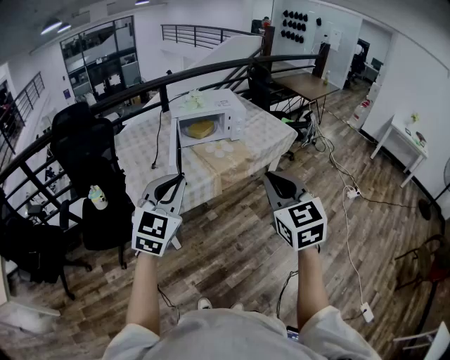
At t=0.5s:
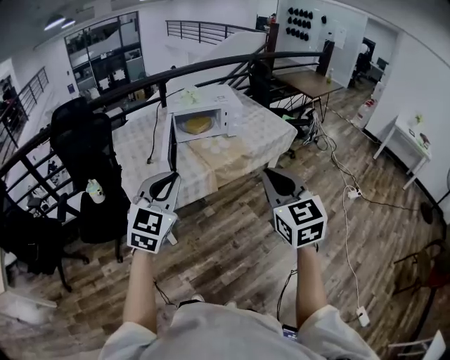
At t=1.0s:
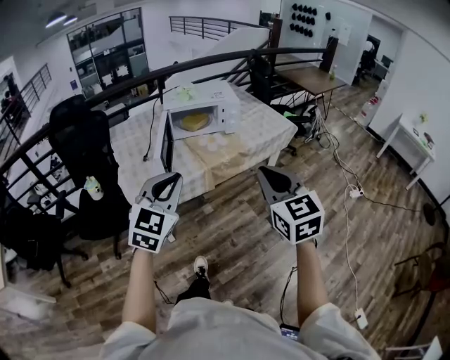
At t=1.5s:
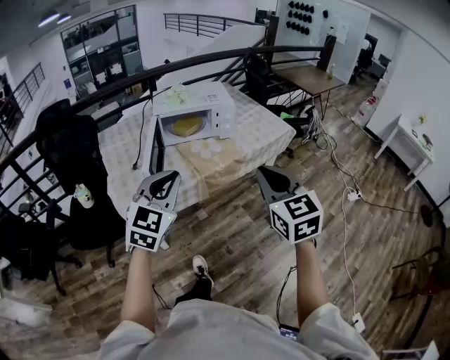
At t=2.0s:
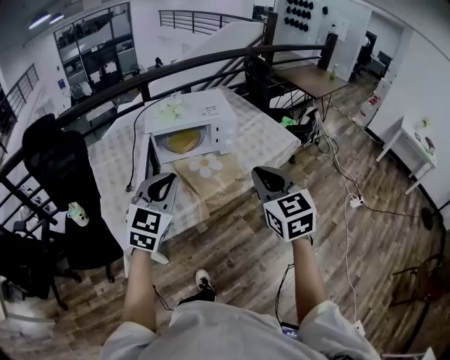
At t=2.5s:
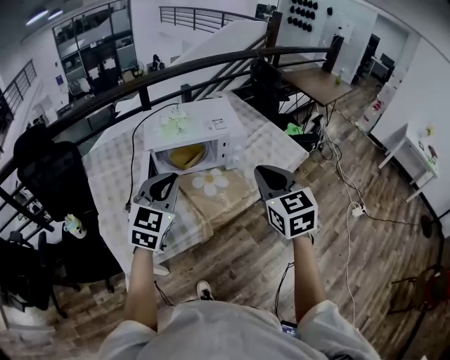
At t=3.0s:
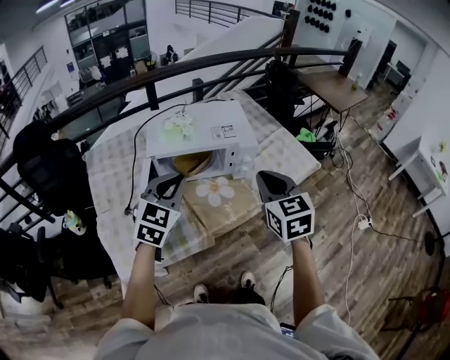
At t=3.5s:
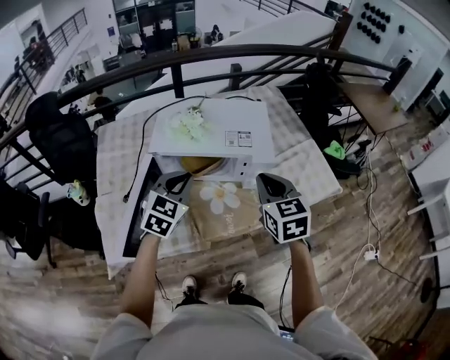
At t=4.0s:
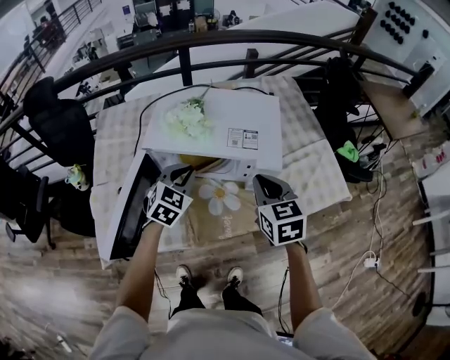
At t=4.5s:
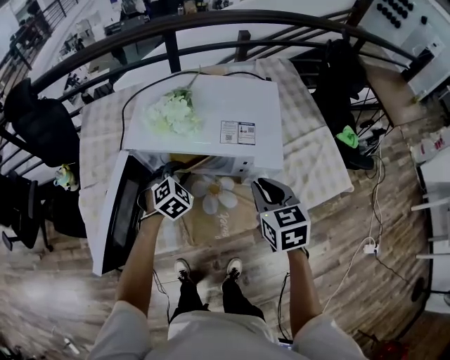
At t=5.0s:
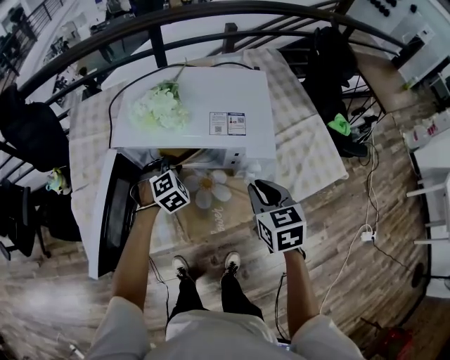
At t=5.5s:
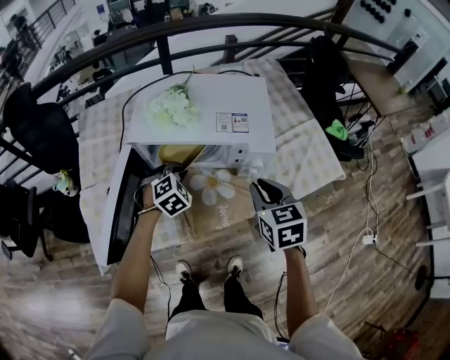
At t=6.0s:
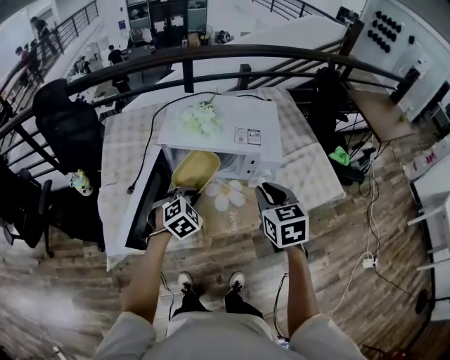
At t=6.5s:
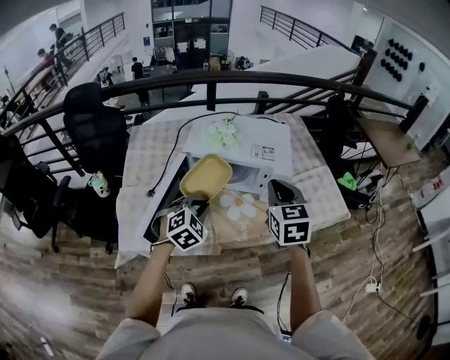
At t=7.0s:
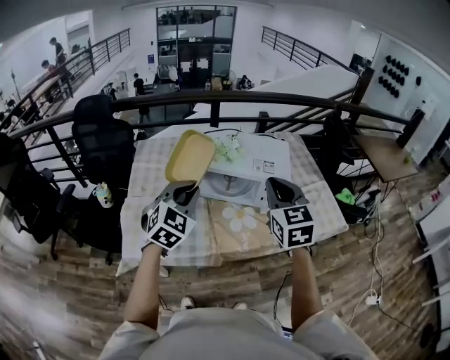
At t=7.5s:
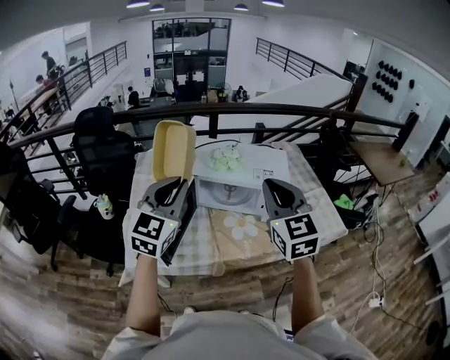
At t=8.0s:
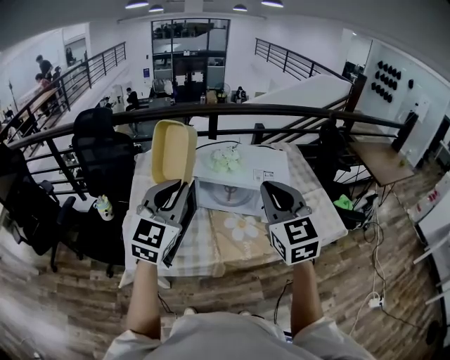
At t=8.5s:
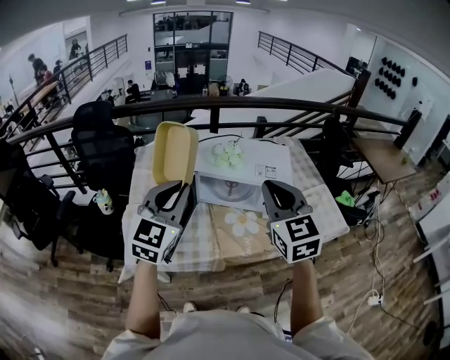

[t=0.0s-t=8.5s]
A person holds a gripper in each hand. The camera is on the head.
t=0.0s to t=2.0s: The two grippers go about 30 cm forward.
t=2.0s to t=4.0s: The left gripper goes some 40 cm forward and downward, and rotates some 30 degrees, while the right gripper shifts roughly 40 cm forward, and rotates roughly 20 degrees.
t=4.0s to t=6.5s: The left gripper goes roughly 15 cm backward, and opens, then closes again. The right gripper is displaced upward and backward by about 15 cm.
t=6.5s to t=8.5s: The right gripper is displaced upward, to the left and backward by some 15 cm, while the left gripper goes about 25 cm upward and to the left, and angles its fingers upward, by about 40 degrees.

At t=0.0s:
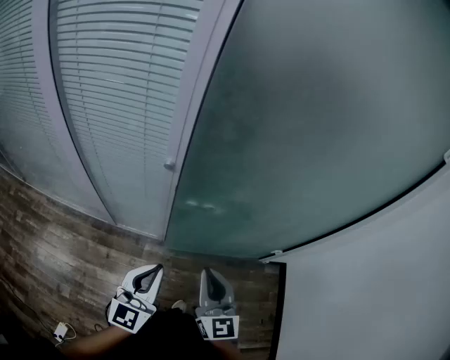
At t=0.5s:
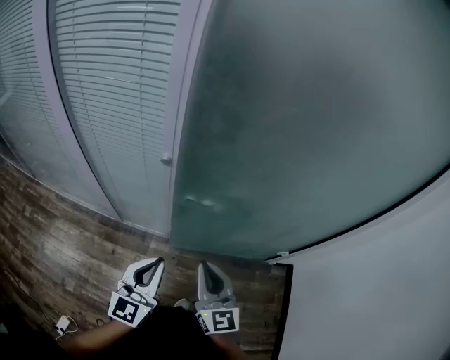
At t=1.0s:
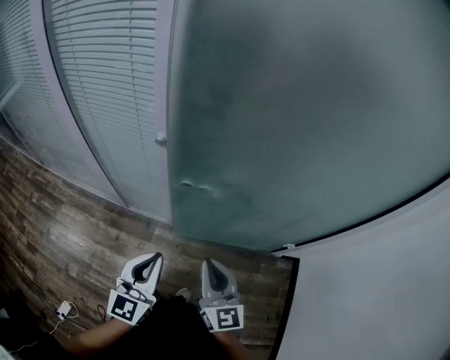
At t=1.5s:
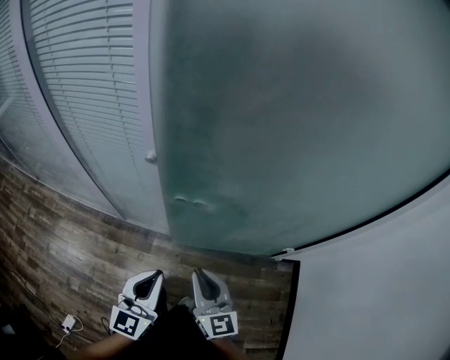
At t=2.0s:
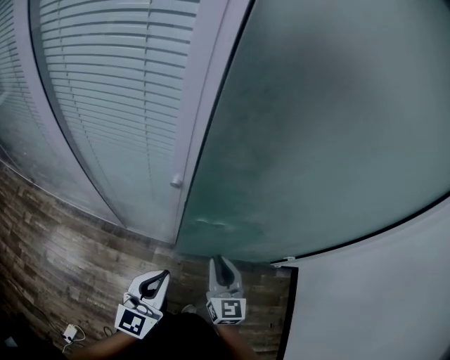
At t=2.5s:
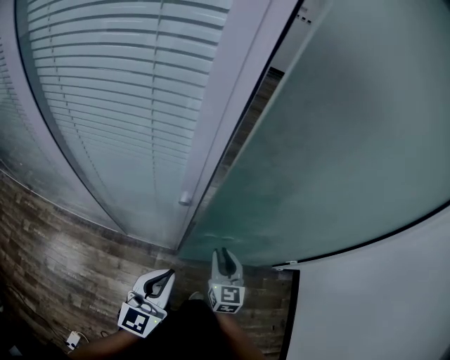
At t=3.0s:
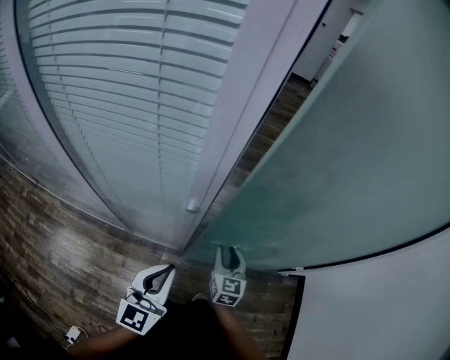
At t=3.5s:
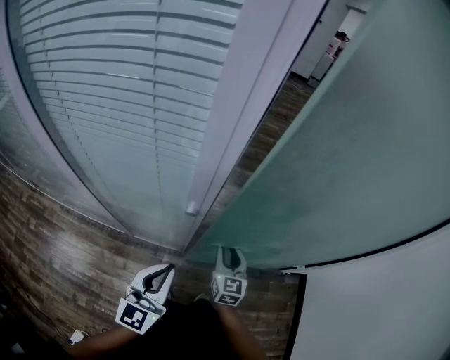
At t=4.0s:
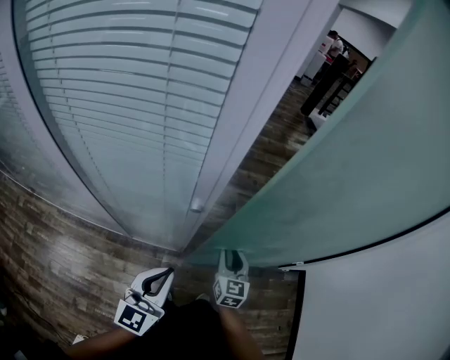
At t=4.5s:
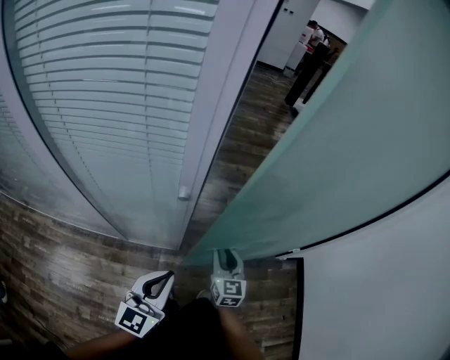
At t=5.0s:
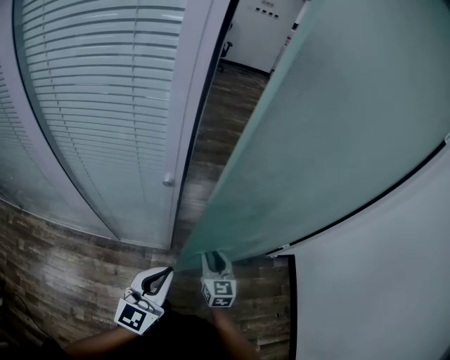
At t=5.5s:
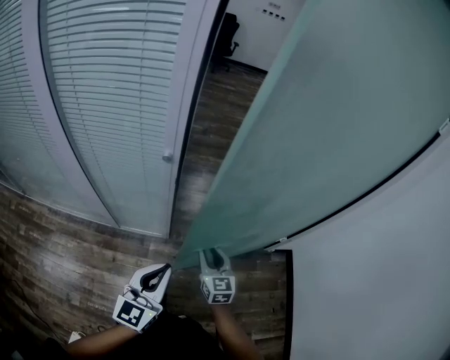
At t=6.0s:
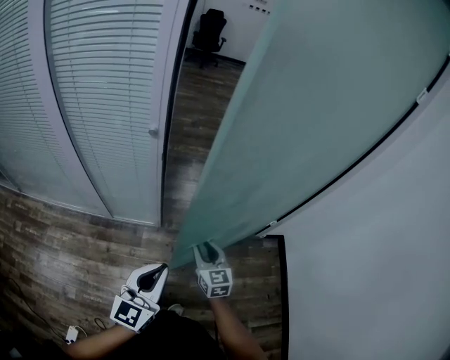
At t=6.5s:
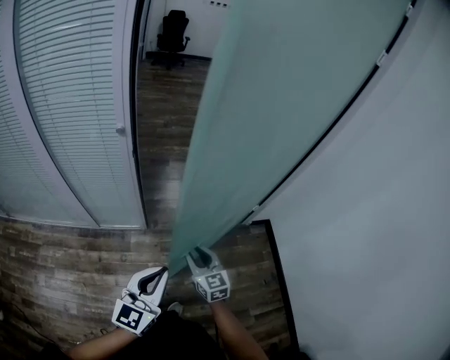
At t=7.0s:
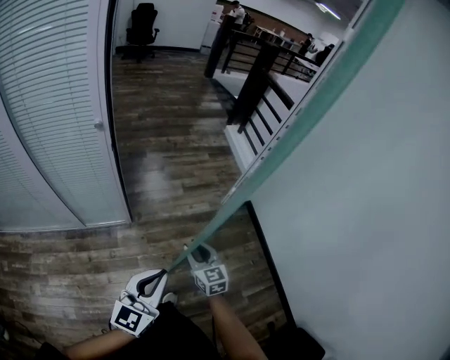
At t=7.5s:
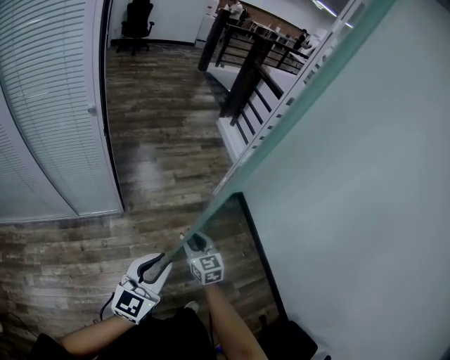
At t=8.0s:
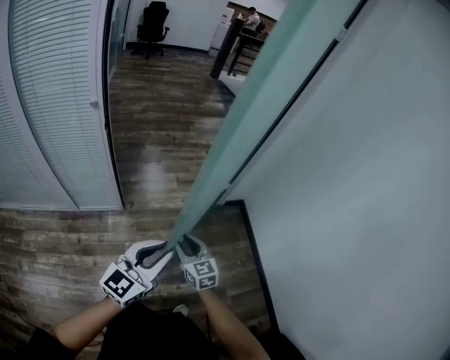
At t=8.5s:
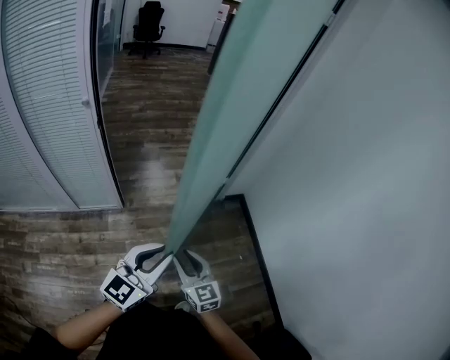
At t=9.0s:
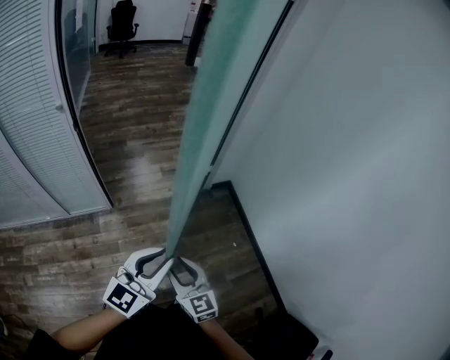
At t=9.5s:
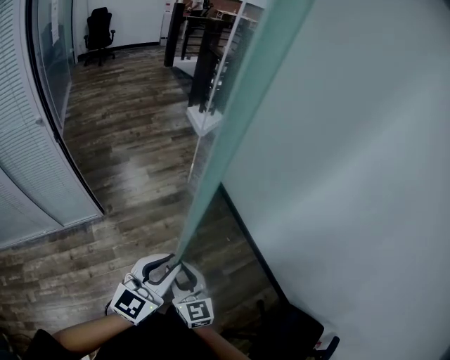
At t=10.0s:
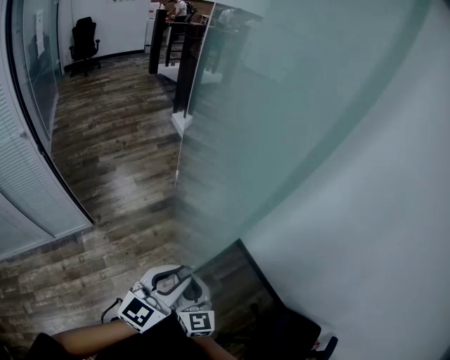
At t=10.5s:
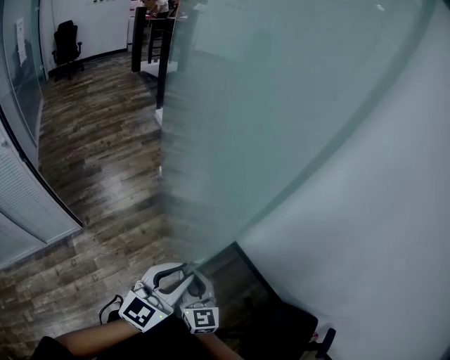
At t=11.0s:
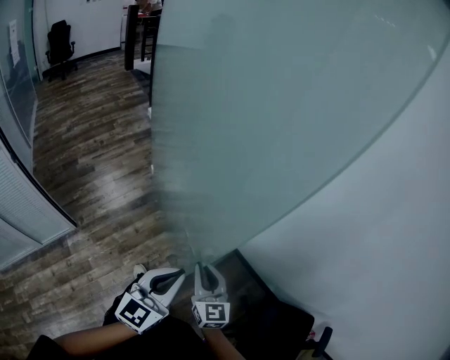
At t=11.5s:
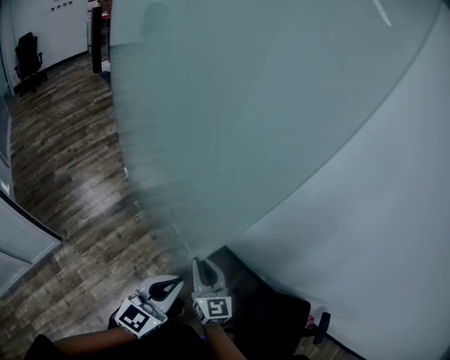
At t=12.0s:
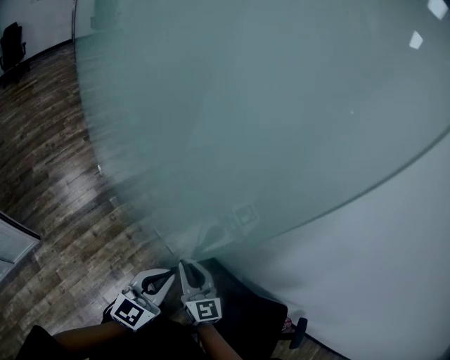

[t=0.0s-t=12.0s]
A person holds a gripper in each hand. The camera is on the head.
t=0.0s to t=2.0s: The right gripper heads downward and forward, covering about 15 cm, while the left gripper moves downward, some 5 cm.
t=2.0s to t=4.0s: The right gripper goes some 10 cm forward and downward. Meanwhile the left gripper shifts by approximately 5 cm.
t=4.0s to t=6.0s: The left gripper goes some 20 cm backward and to the right; the right gripper heads backward, covering approximately 20 cm.
t=6.0s to t=8.0s: The right gripper goes roughly 20 cm to the right and backward; the left gripper travels to the right by about 20 cm, and turns by some 30 degrees.
t=8.0s to t=10.0s: The right gripper goes some 25 cm to the right and backward, and turns by roughly 30 degrees; the left gripper goes some 25 cm to the right.
t=10.0s to t=12.0s: Both grippers travel together to the right and forward, some 25 cm. The left gripper closes.

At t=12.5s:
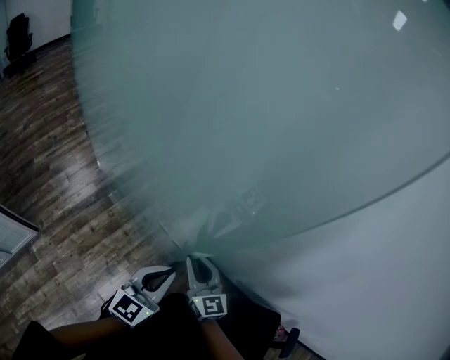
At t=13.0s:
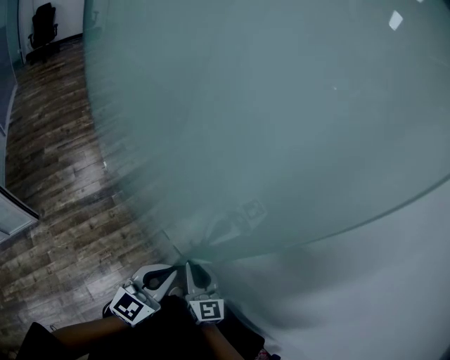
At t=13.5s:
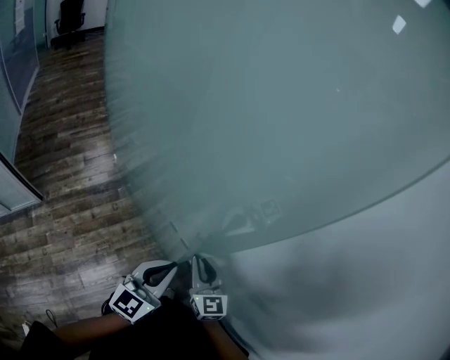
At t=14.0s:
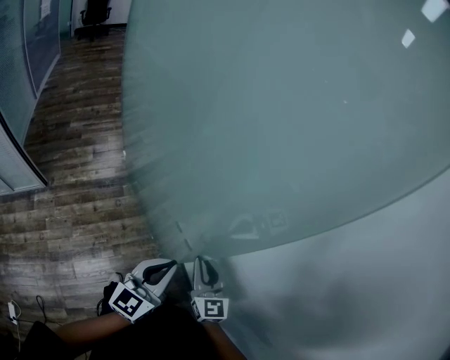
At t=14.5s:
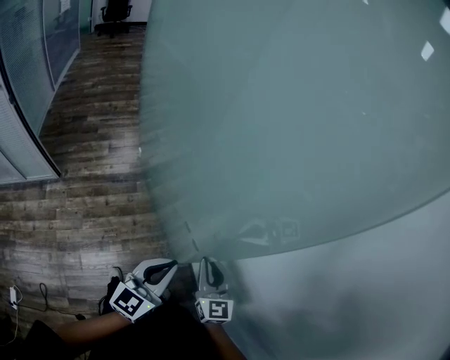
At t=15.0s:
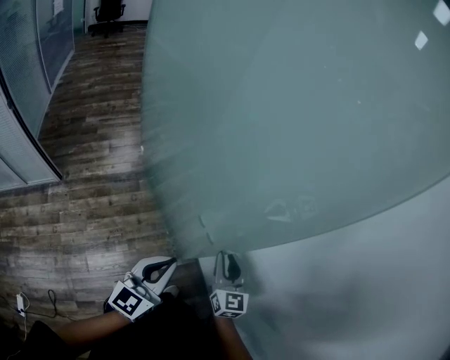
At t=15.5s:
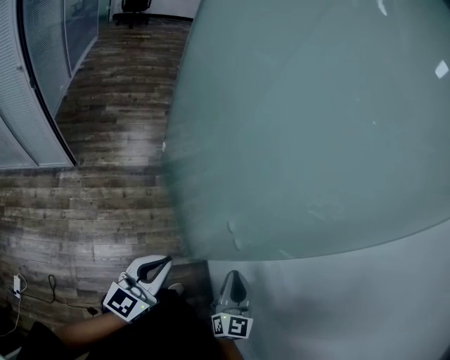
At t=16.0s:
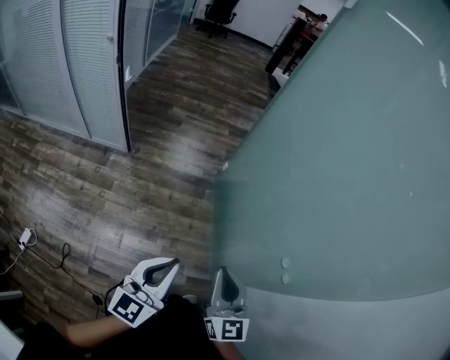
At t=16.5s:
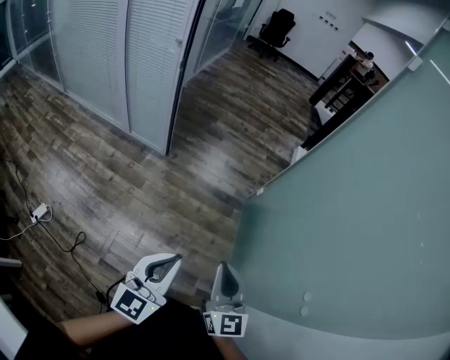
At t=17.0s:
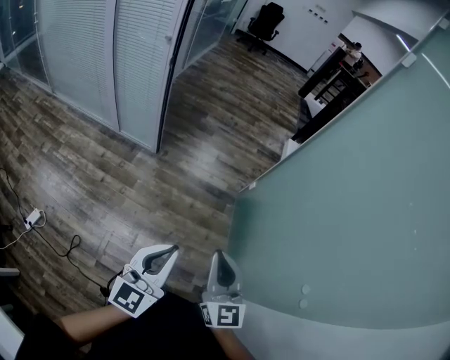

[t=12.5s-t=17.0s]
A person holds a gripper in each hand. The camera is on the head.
t=12.5s to t=14.5s: The left gripper shifts roughly 5 cm forward, and changes its angle by approximately 30 degrees. Meanwhile the right gripper is displaced forward and to the right by about 10 cm.
t=14.5s to t=17.0s: The pair of grippers is taken some 40 cm. The right gripper turns by about 40 degrees; the left gripper swivels approximately 40 degrees.

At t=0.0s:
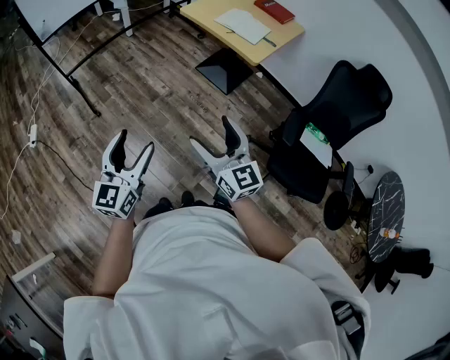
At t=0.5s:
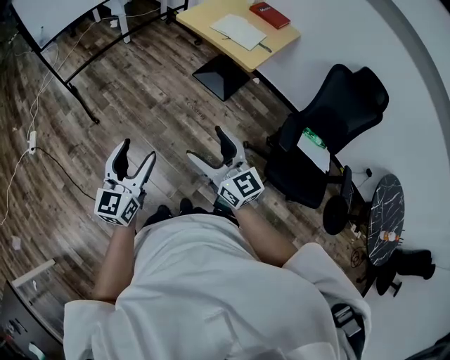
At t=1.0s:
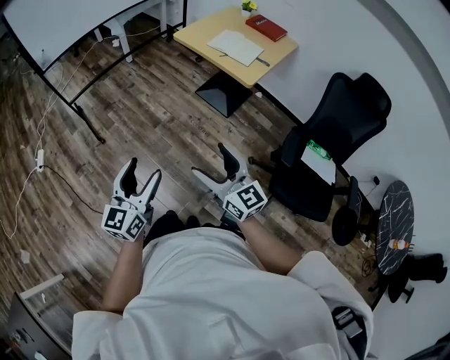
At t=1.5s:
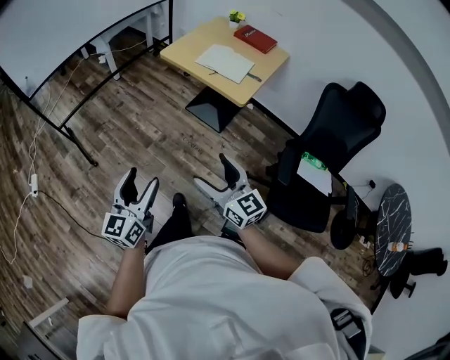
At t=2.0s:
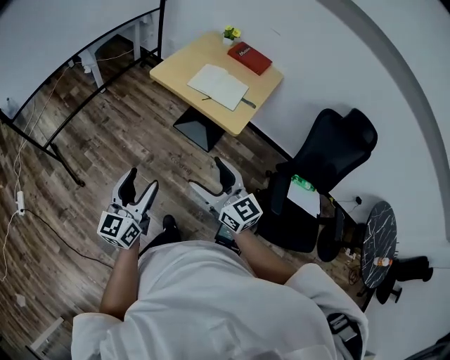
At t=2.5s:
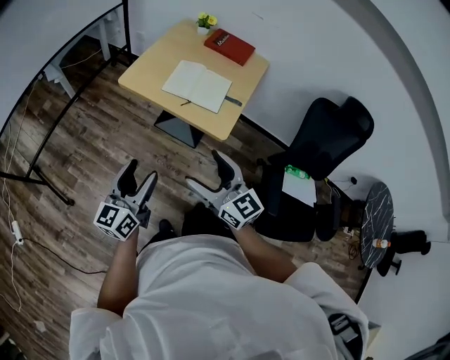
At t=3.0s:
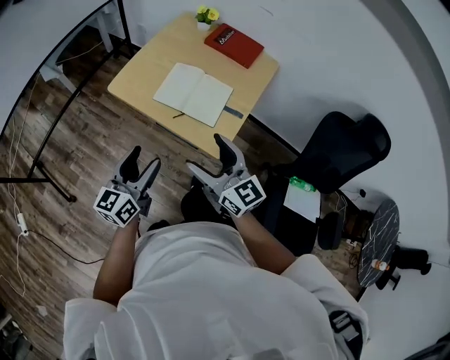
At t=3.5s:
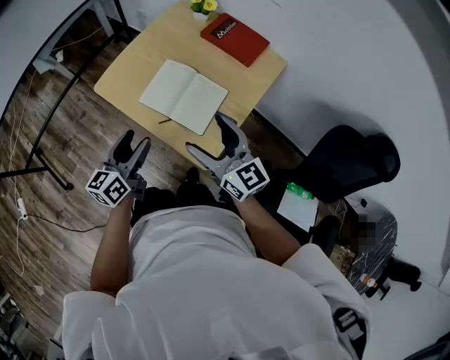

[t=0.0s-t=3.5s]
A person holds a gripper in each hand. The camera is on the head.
t=0.0s to t=2.0s: Both grippers move forward, approximately 20 cm.
t=2.0s to t=3.5s: The two grippers go approximately 40 cm forward and to the right. The left gripper rotates roughly 20 degrees.
